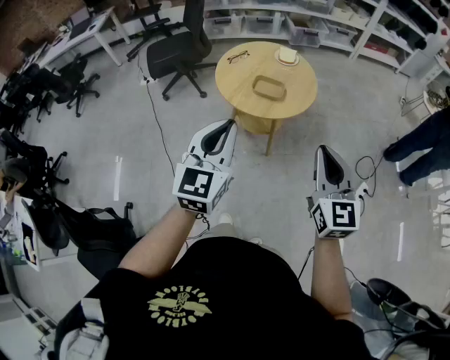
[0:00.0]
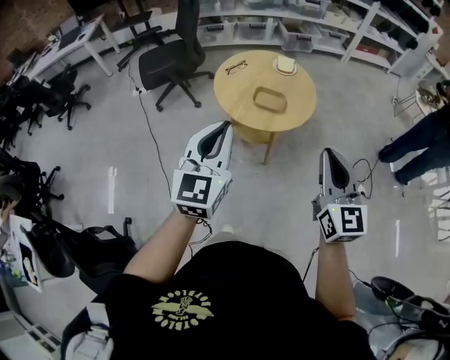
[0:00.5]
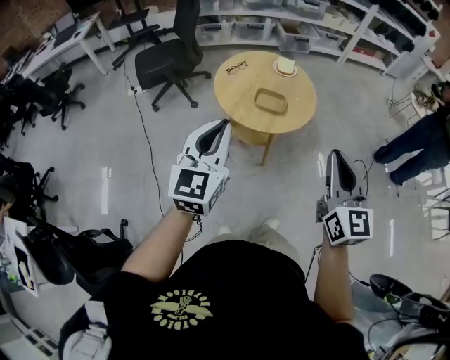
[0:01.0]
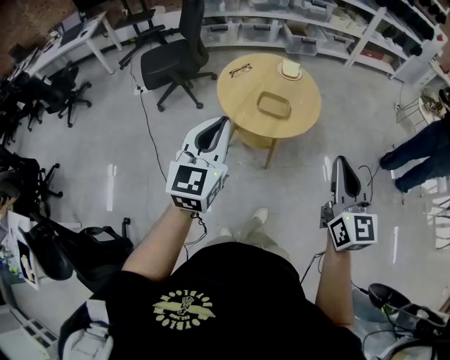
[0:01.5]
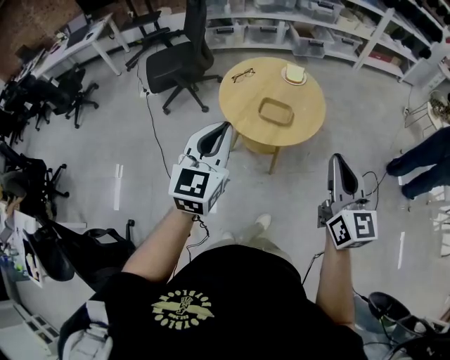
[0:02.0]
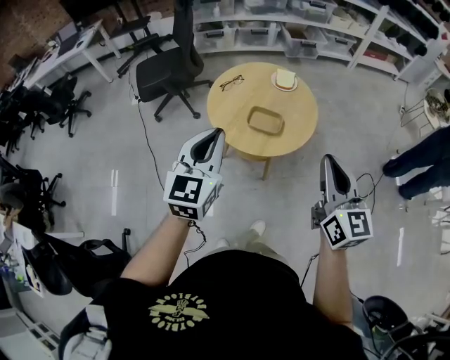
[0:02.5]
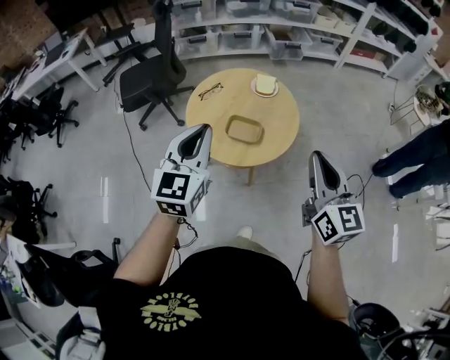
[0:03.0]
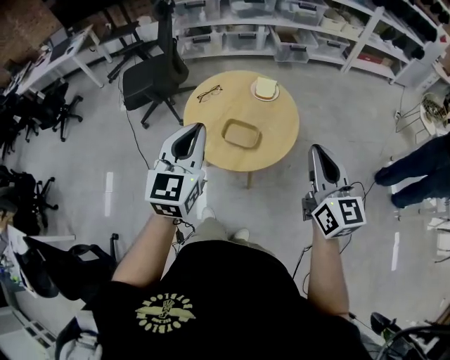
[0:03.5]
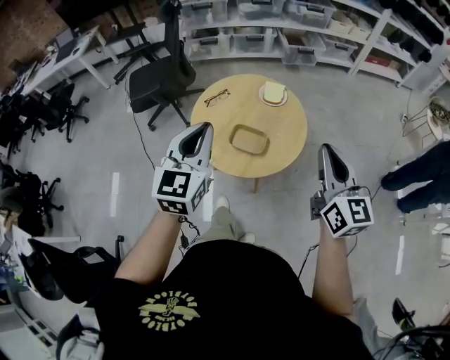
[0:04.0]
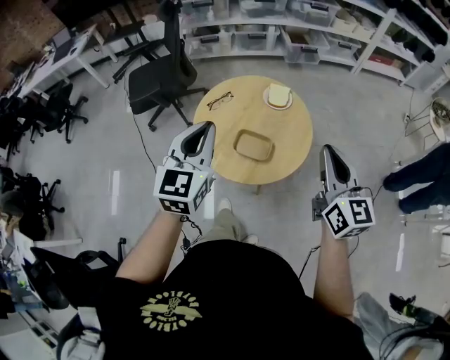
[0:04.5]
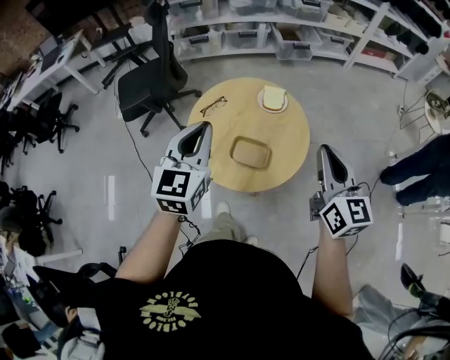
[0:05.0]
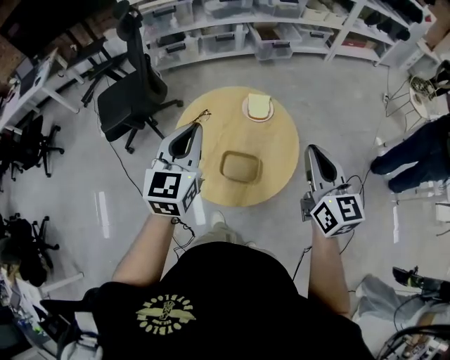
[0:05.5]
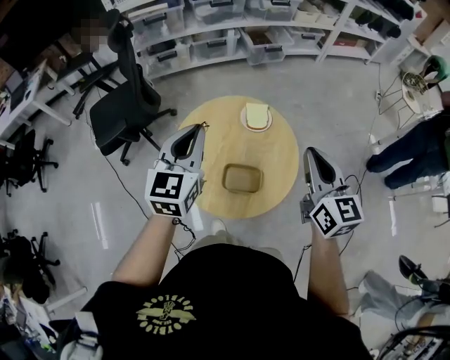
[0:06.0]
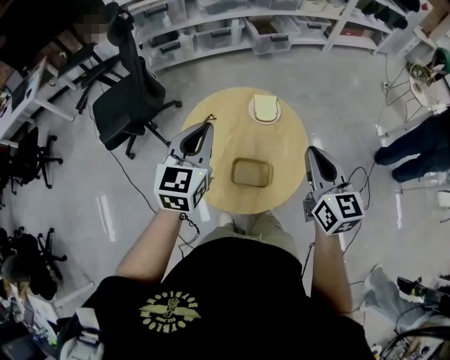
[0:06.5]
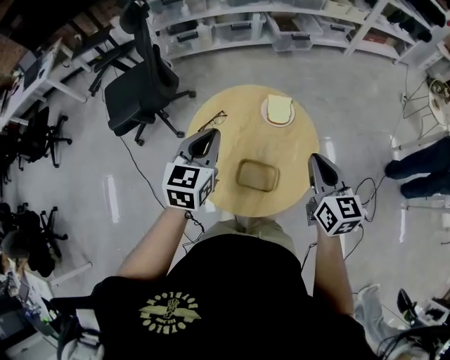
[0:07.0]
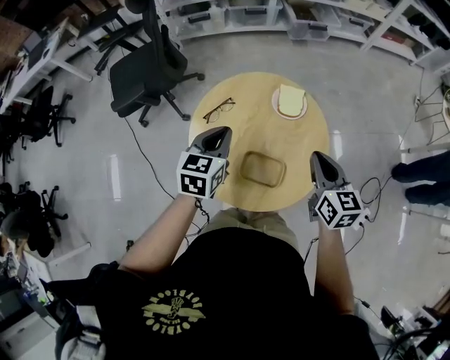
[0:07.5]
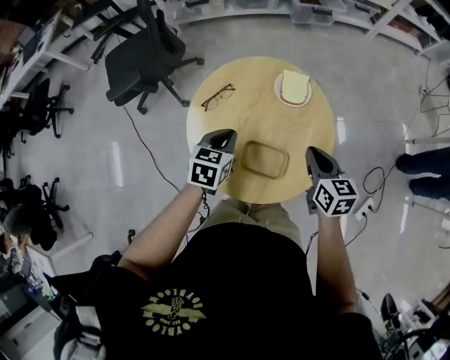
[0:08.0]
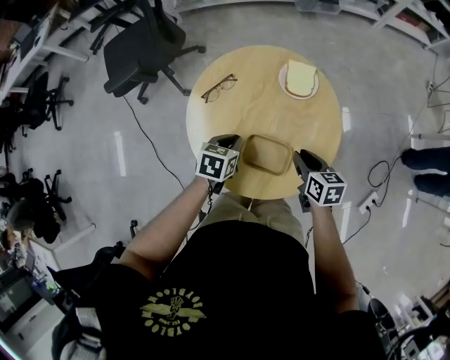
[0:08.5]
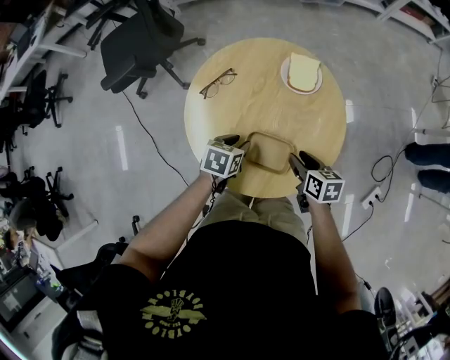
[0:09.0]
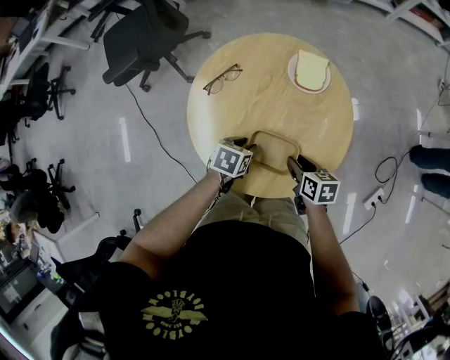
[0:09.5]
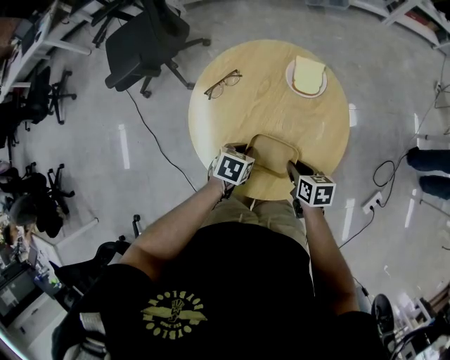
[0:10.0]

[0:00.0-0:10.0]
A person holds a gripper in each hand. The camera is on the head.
0:00.0 to 0:02.0: The left gripper goes about 15 cm forward and to the left. The right gripper shifts about 10 cm forward.
0:02.0 to 0:04.0: The two grippers go approximately 20 cm forward and to the right.
0:04.0 to 0:06.0: The left gripper is displaced forward by some 25 cm; the right gripper goes approximately 20 cm forward and to the left.
0:06.0 to 0:08.0: Both grippers travel together downward, about 25 cm. The right gripper swivels about 30 degrees, while the left gripper tilts its fingers approximately 30 degrees downward.
0:08.0 to 0:10.0: The grippers both shift downward by about 15 cm. The left gripper rotates some 20 degrees, and opens and closes again. The right gripper changes its angle by about 30 degrees, and opens, then closes once more.

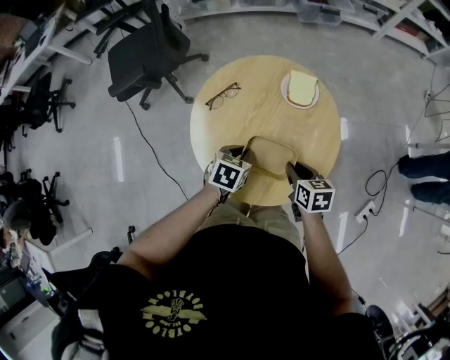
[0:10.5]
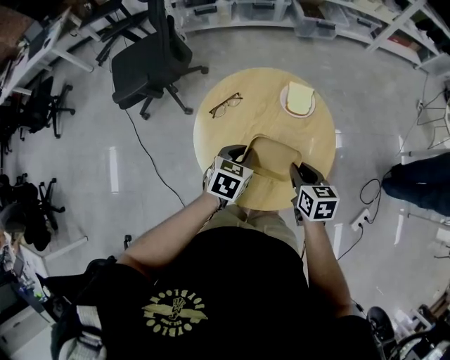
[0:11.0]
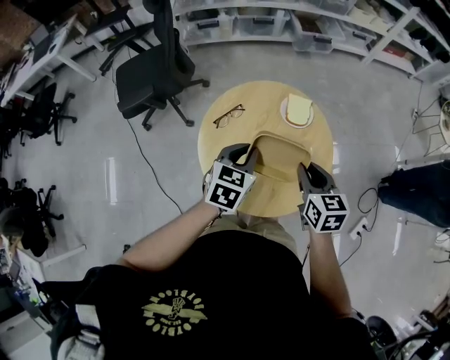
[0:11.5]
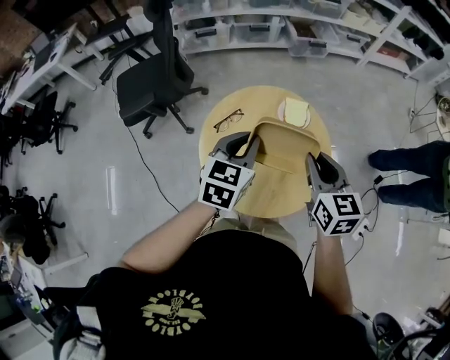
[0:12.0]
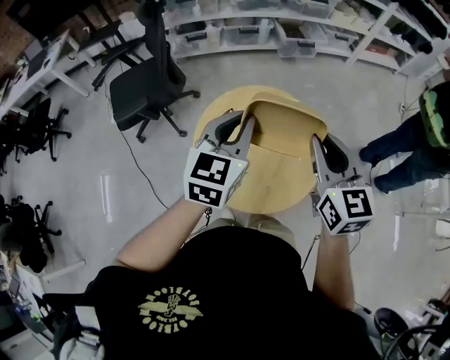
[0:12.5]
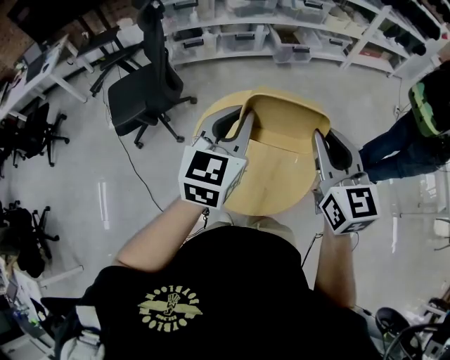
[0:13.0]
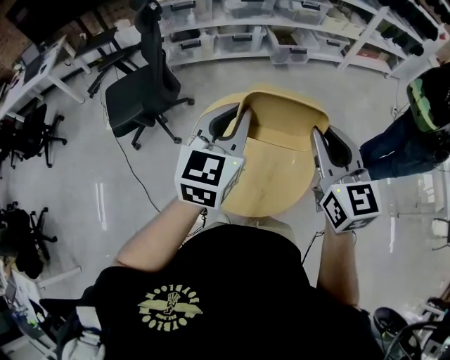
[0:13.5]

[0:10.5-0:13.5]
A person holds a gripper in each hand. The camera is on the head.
0:10.5 to 0:12.0: Both grippers move upward, roughly 25 cm. The left gripper rotates some 30 degrees, while the right gripper changes its angle by approximately 30 degrees.
0:12.0 to 0:13.5: Both grippers move upward, some 15 cm.

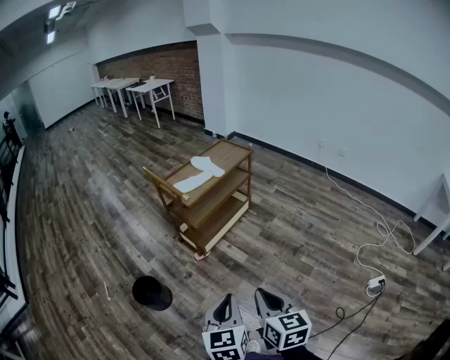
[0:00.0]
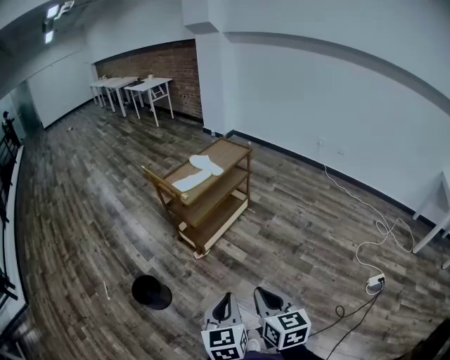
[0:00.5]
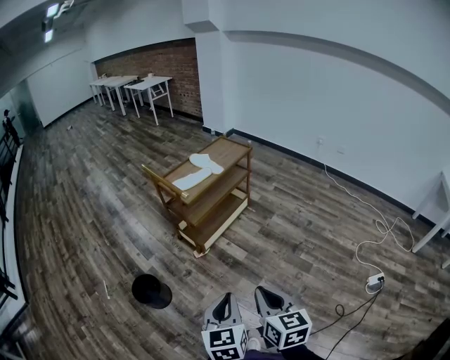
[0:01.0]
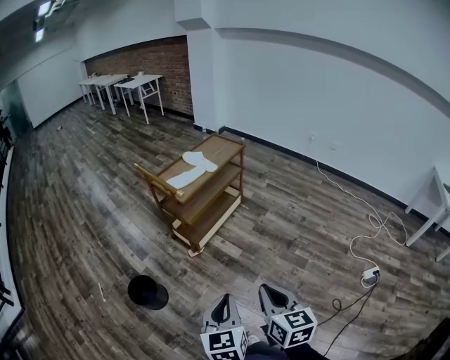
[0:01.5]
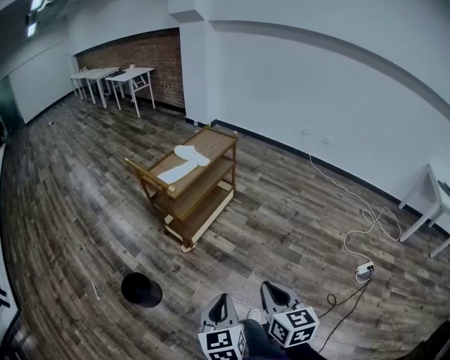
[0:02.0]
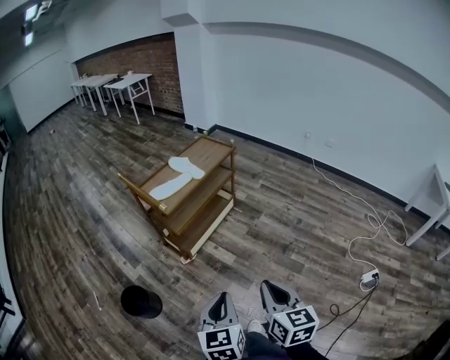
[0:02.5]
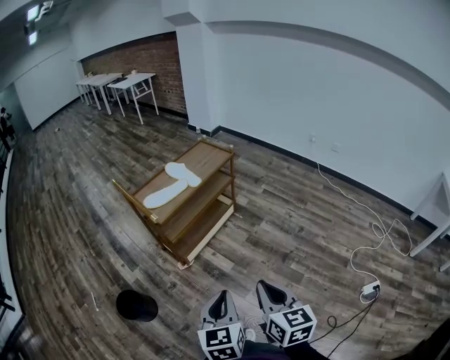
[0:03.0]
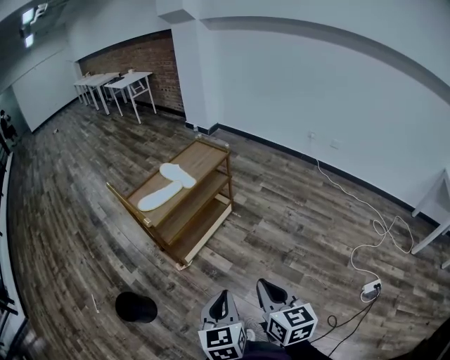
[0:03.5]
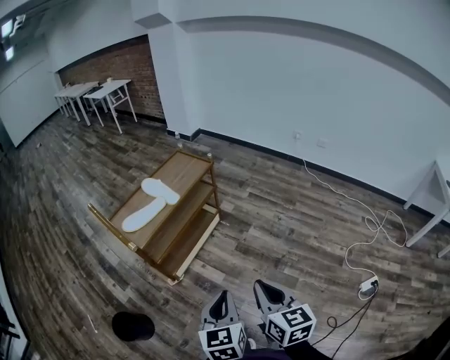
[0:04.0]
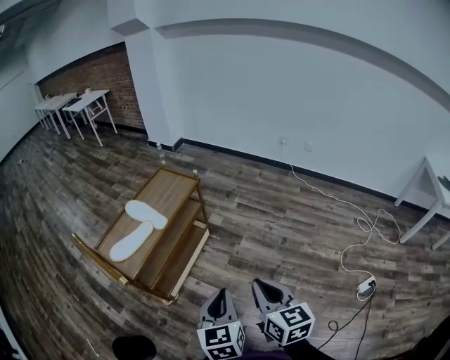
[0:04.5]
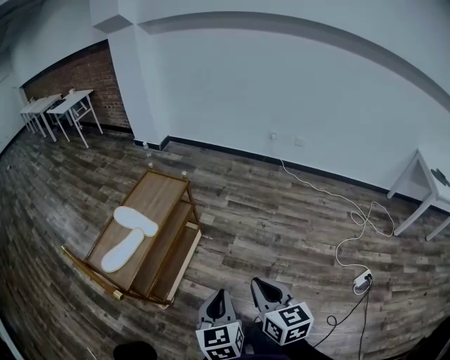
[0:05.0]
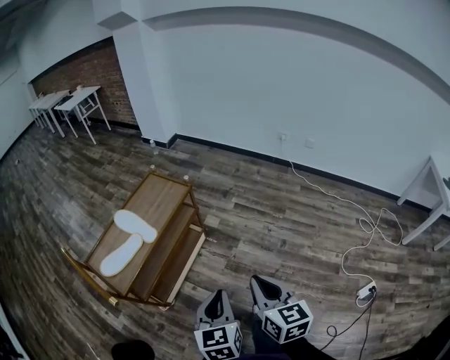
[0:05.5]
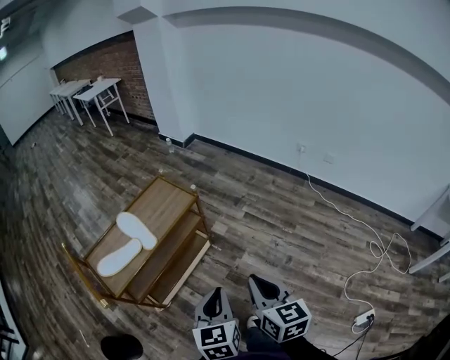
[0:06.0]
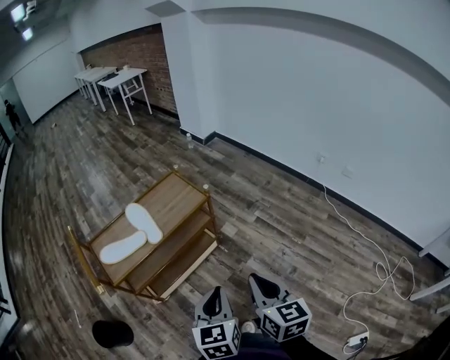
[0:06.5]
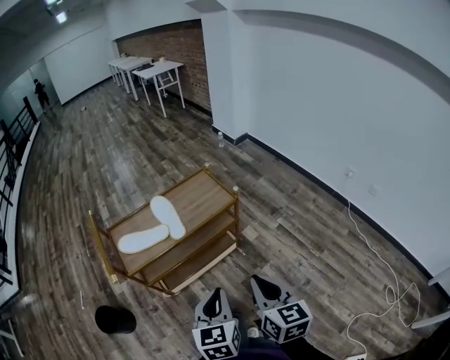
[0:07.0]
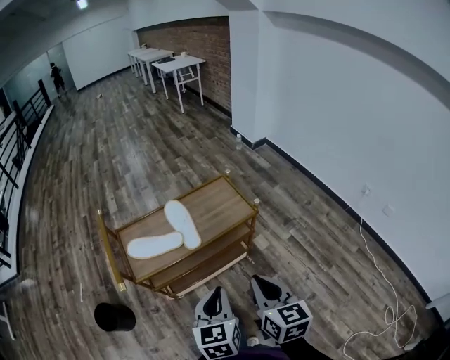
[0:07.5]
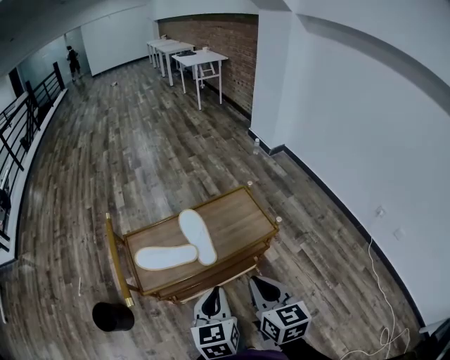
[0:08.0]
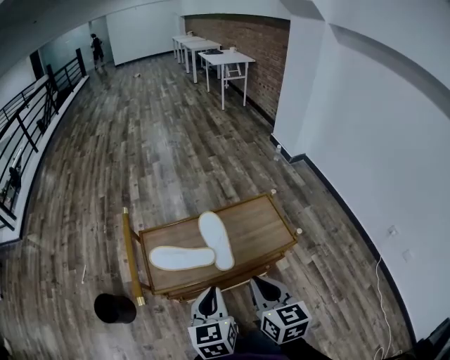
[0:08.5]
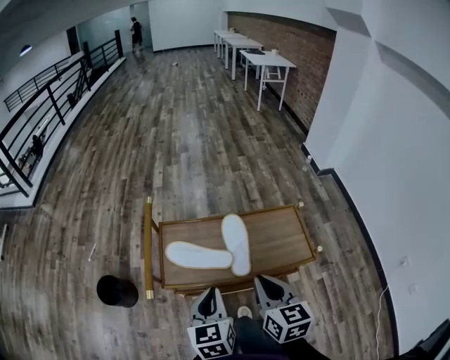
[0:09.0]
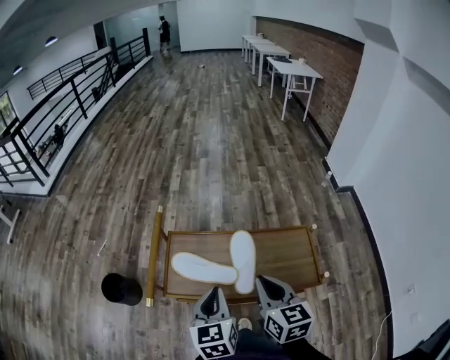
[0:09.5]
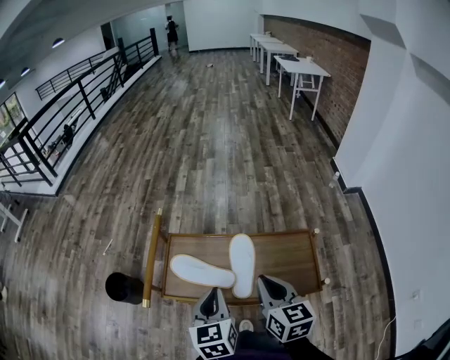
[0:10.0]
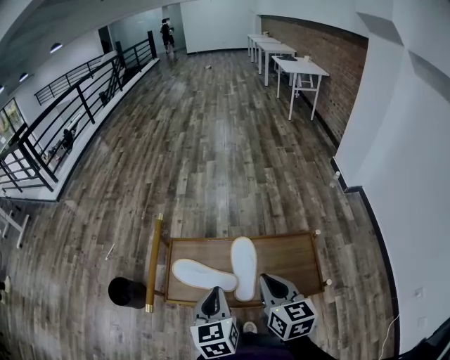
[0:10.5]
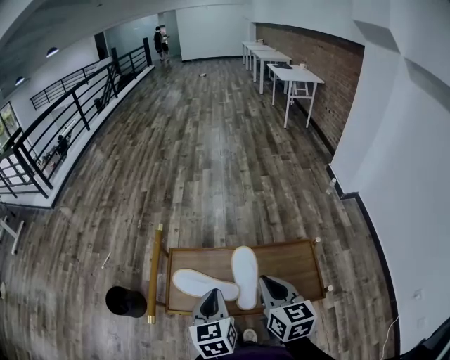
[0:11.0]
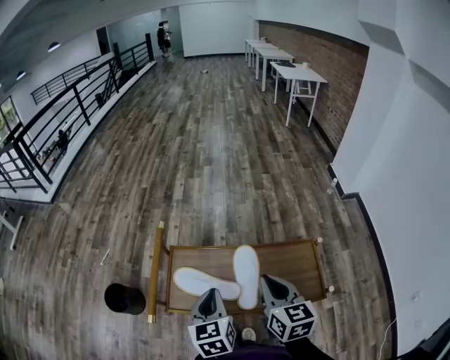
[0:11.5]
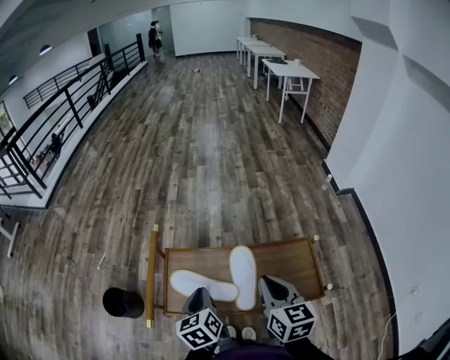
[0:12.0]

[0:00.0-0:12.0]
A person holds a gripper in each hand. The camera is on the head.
0:00.0 to 0:02.0: There are only small adjustments of the grippers.
0:02.0 to 0:04.0: Both grippers travel together forward and to the right, roughly 30 cm.
0:04.0 to 0:06.0: The grippers both shift forward by roughly 30 cm.
0:06.0 to 0:08.0: The right gripper changes place by some 25 cm, and changes its angle by some 30 degrees, while the left gripper moves some 25 cm, and turns by about 30 degrees.
0:08.0 to 0:10.0: The right gripper changes place by approximately 20 cm, and rotates about 30 degrees. Meanwhile the left gripper changes place by about 15 cm, and swivels some 30 degrees.
0:10.0 to 0:12.0: The left gripper travels forward and downward by approximately 10 cm.

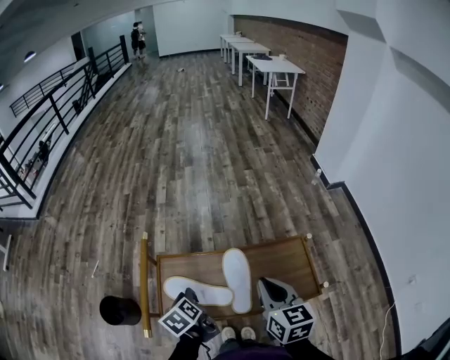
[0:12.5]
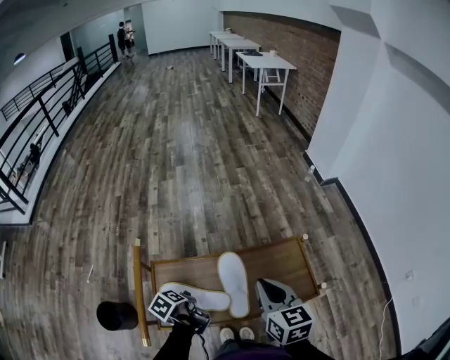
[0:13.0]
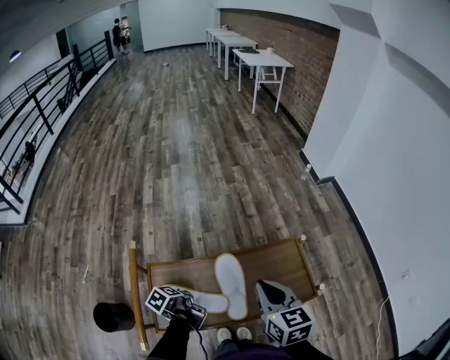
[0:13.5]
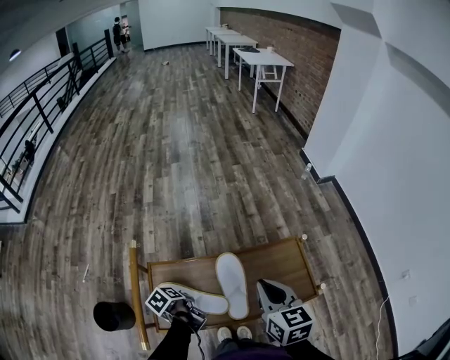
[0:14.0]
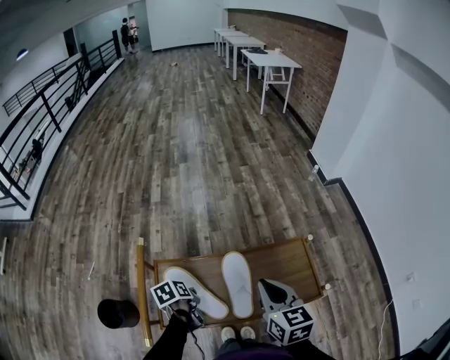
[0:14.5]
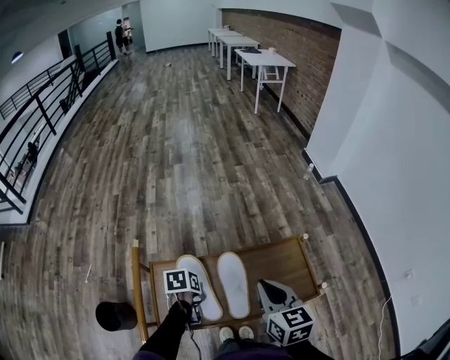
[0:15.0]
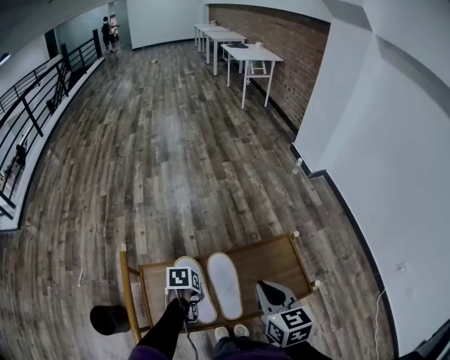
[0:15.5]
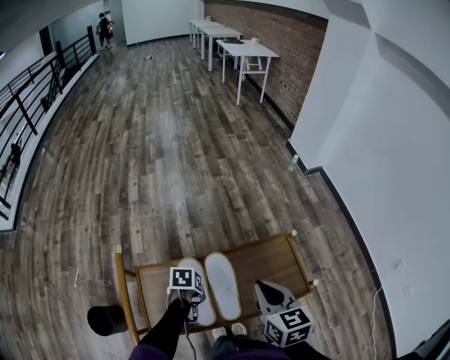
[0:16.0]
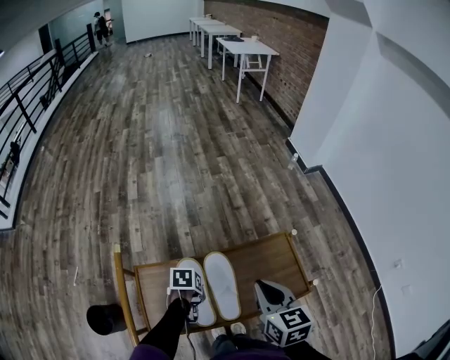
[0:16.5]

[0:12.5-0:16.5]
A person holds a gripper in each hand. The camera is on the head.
0:12.5 to 0:14.5: The left gripper heads downward, covering some 5 cm, and swivels roughly 30 degrees.
0:14.5 to 0:16.5: The left gripper moves to the right and forward, roughly 10 cm, and turns by approximately 40 degrees.
